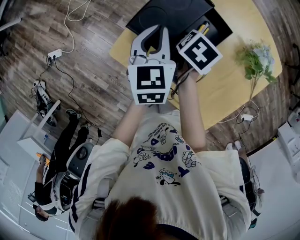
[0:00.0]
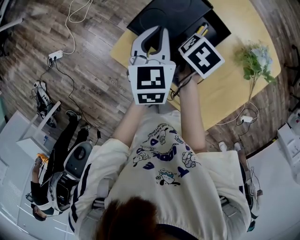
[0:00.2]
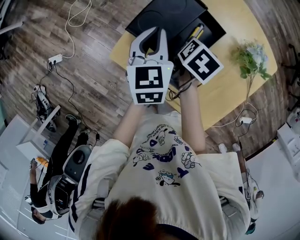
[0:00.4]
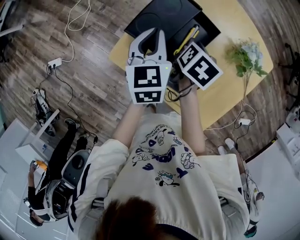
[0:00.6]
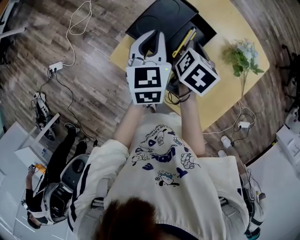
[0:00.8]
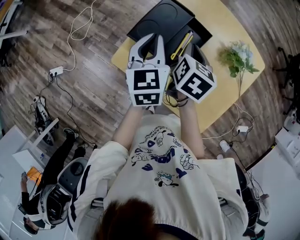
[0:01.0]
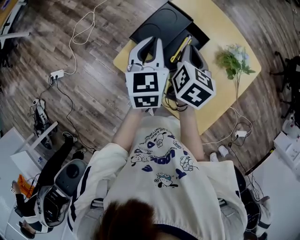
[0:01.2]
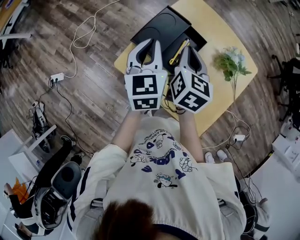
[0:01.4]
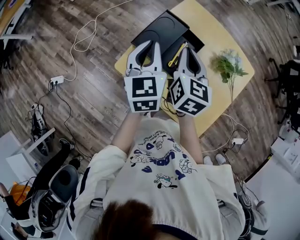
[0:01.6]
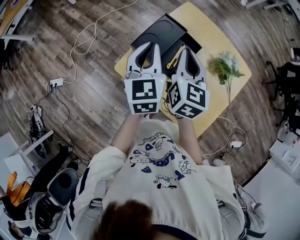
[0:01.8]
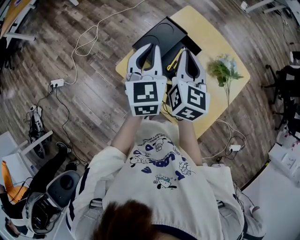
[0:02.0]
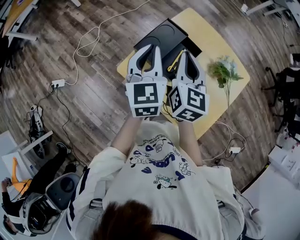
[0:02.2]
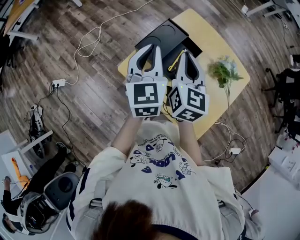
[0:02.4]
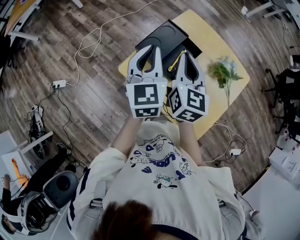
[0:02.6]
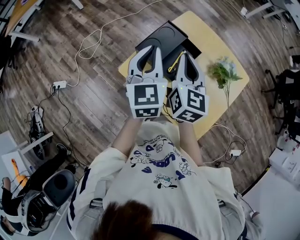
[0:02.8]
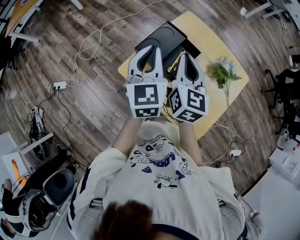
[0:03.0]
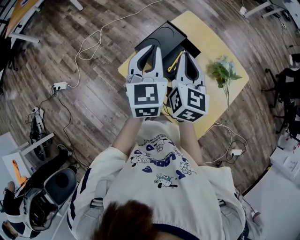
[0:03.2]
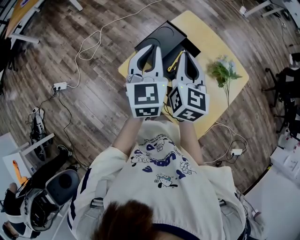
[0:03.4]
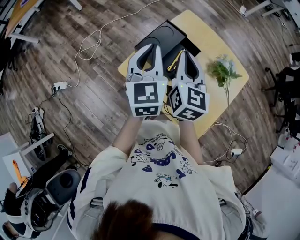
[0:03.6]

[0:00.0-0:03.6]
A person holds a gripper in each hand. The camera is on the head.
0:00.0 to 0:01.8: The left gripper travels upward by some 15 cm, while the right gripper goes approximately 25 cm upward, tilts its fingers about 50 degrees upward, and closes up.
0:01.8 to 0:03.6: The grippers stay close to where they were, moving slightly.

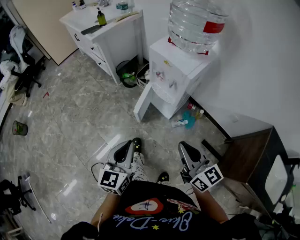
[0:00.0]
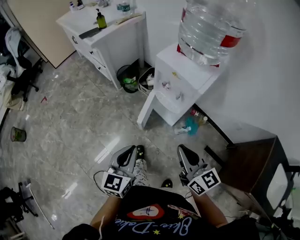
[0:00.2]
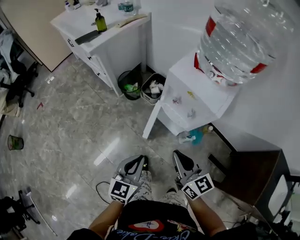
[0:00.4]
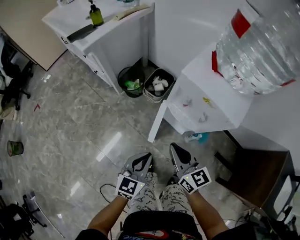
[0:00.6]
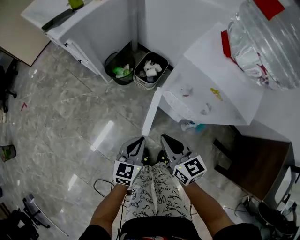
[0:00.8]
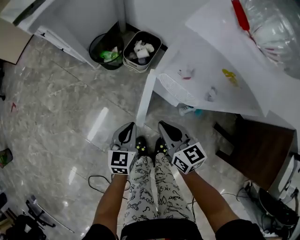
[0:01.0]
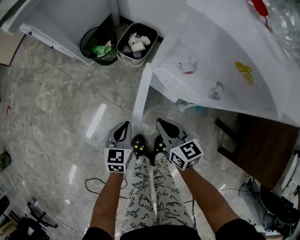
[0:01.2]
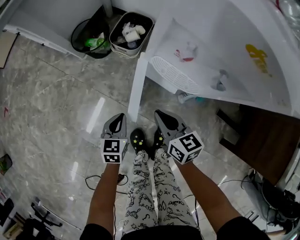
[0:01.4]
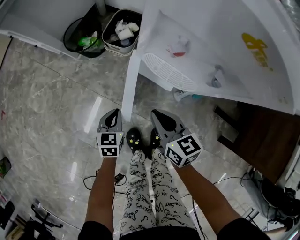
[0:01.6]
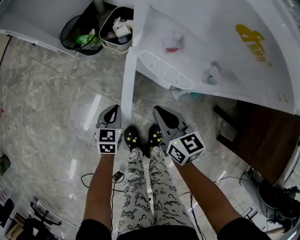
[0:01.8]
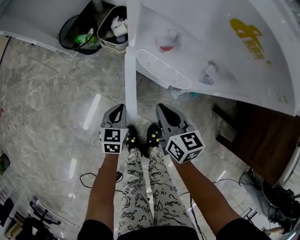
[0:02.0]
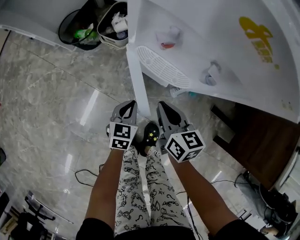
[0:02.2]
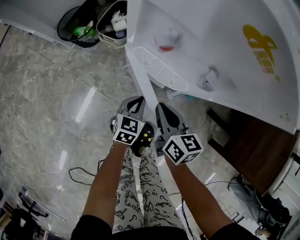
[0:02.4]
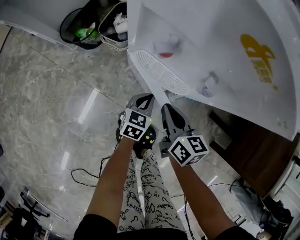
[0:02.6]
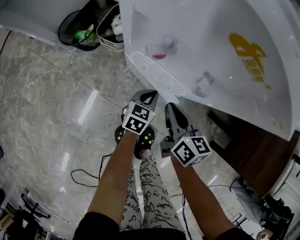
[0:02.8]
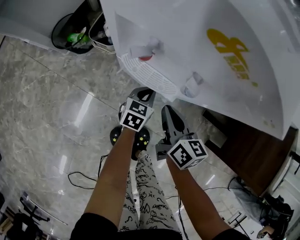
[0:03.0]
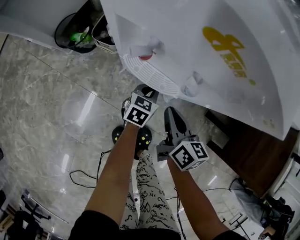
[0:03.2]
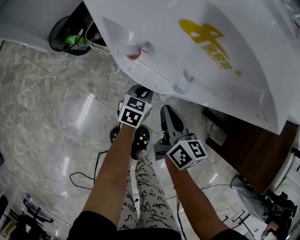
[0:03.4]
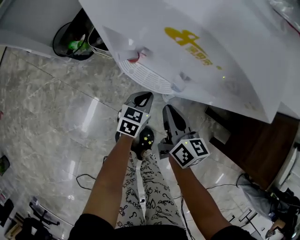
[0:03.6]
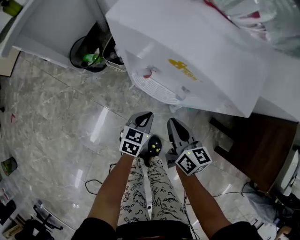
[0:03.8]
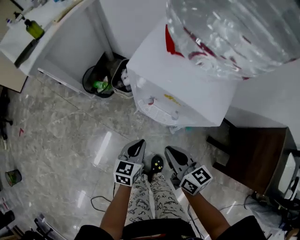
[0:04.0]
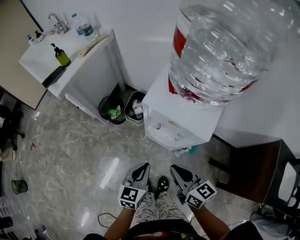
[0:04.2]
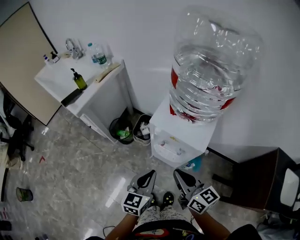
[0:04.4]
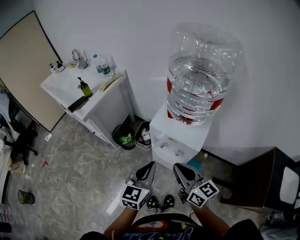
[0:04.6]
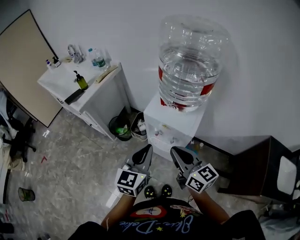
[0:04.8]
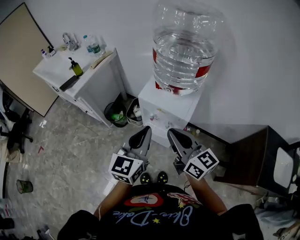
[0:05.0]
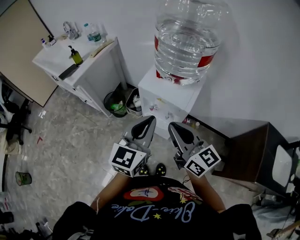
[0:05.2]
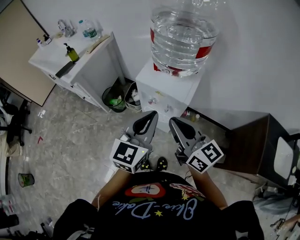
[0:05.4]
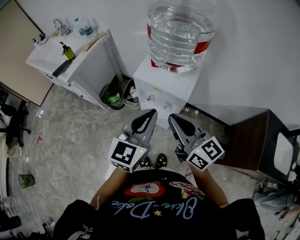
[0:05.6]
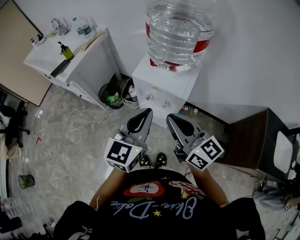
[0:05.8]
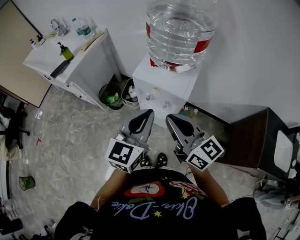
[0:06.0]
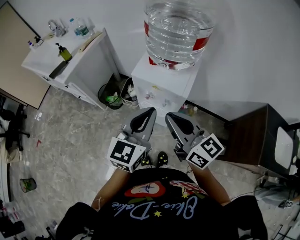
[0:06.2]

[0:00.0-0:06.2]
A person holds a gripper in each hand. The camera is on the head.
0:00.0 to 0:01.6: Both grippers move downward and forward, some 50 cm. The right gripper changes its angle by approximately 30 degrees. The left gripper rotates about 30 degrees.
0:01.6 to 0:03.2: The left gripper goes about 25 cm to the right and forward, and turns by approximately 20 degrees, while the right gripper moves to the right, approximately 15 cm, and rotates about 30 degrees.
0:03.2 to 0:04.6: The two grippers go approximately 50 cm upward. The right gripper rotates about 40 degrees. Meanwhile the left gripper rotates approximately 30 degrees.
0:04.6 to 0:06.2: The left gripper travels upward and to the right by approximately 10 cm. Meanwhile the right gripper heads upward, covering approximately 5 cm.

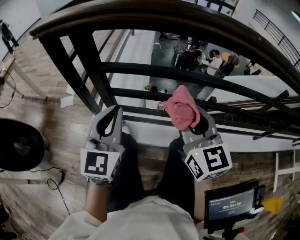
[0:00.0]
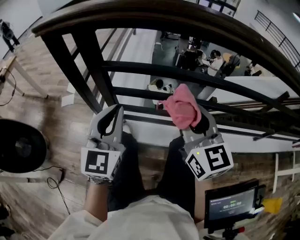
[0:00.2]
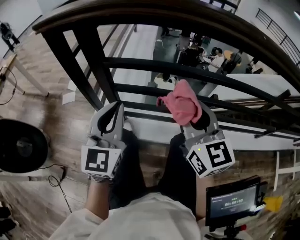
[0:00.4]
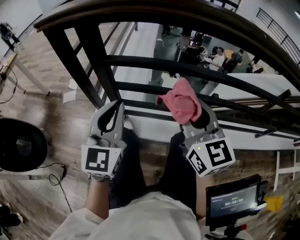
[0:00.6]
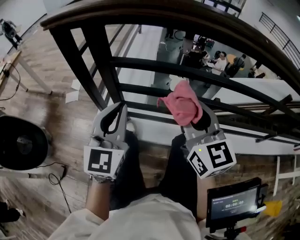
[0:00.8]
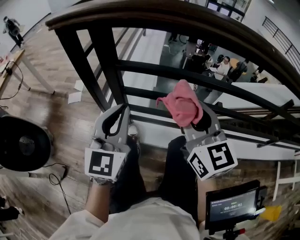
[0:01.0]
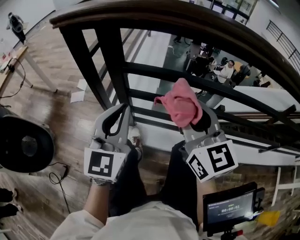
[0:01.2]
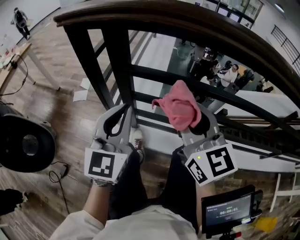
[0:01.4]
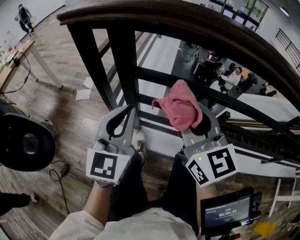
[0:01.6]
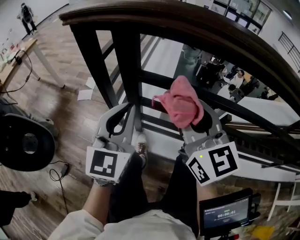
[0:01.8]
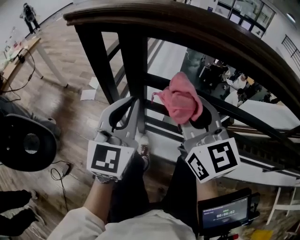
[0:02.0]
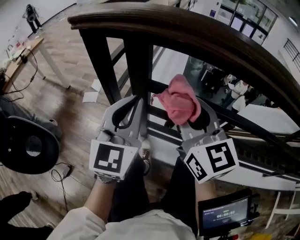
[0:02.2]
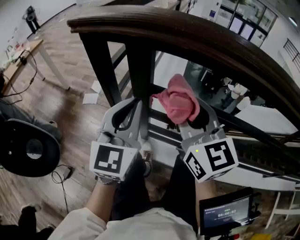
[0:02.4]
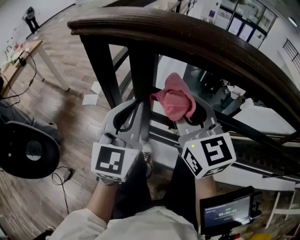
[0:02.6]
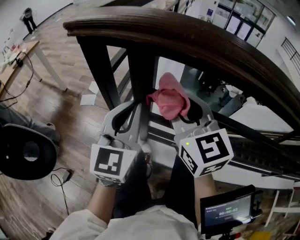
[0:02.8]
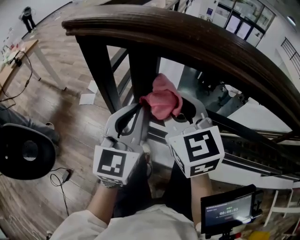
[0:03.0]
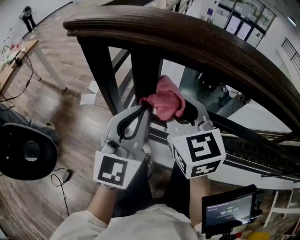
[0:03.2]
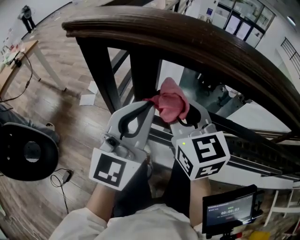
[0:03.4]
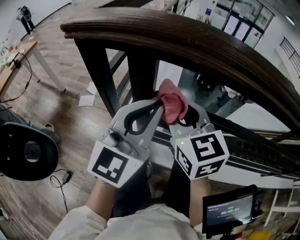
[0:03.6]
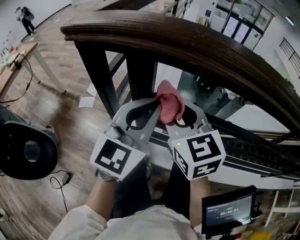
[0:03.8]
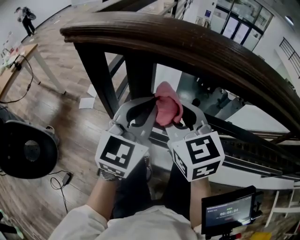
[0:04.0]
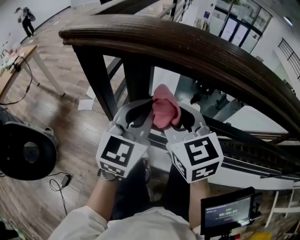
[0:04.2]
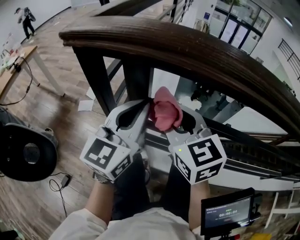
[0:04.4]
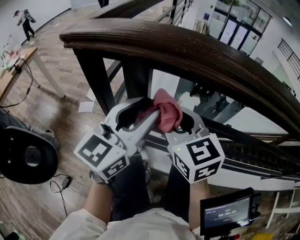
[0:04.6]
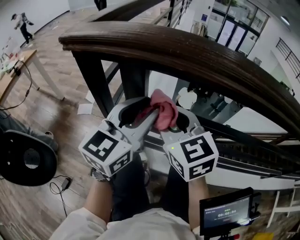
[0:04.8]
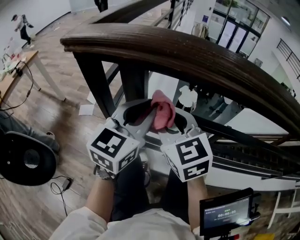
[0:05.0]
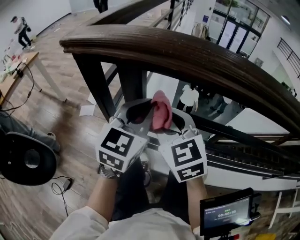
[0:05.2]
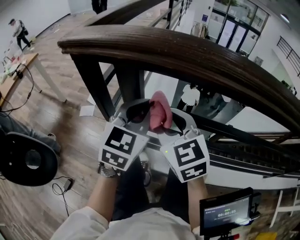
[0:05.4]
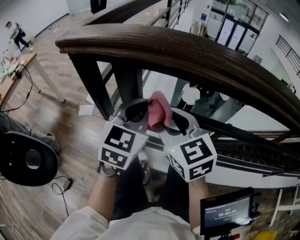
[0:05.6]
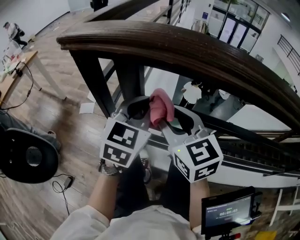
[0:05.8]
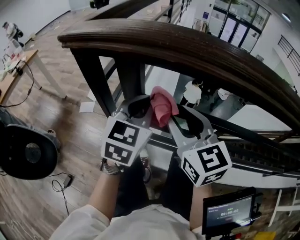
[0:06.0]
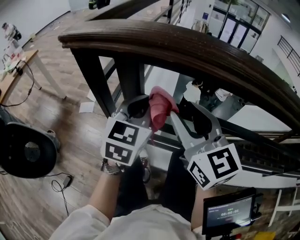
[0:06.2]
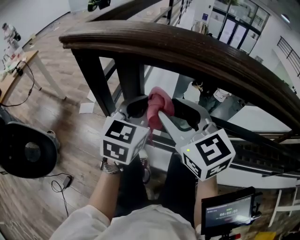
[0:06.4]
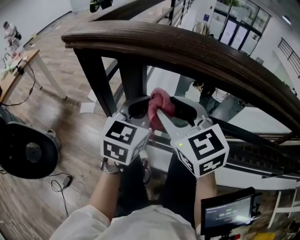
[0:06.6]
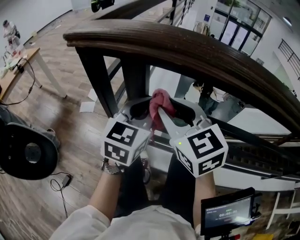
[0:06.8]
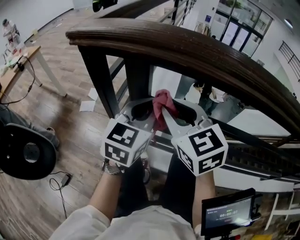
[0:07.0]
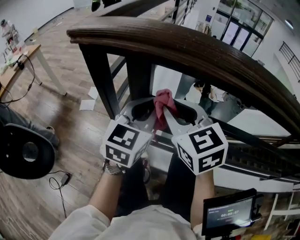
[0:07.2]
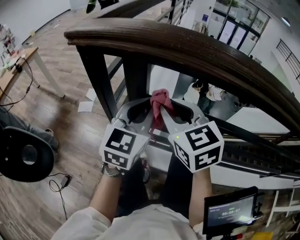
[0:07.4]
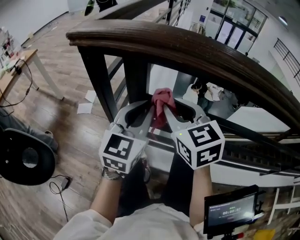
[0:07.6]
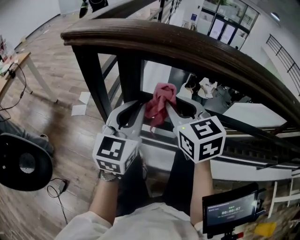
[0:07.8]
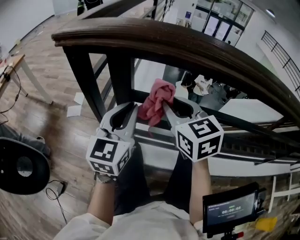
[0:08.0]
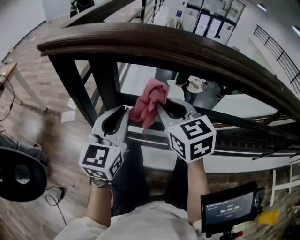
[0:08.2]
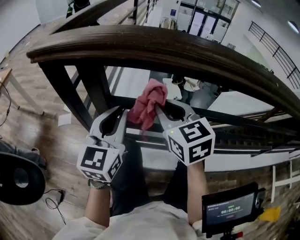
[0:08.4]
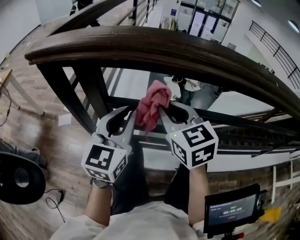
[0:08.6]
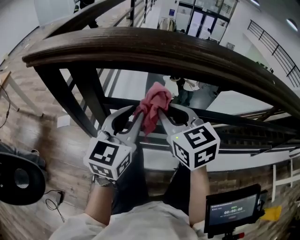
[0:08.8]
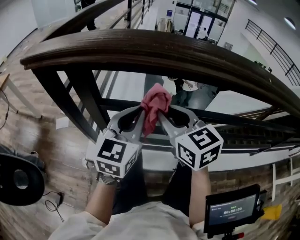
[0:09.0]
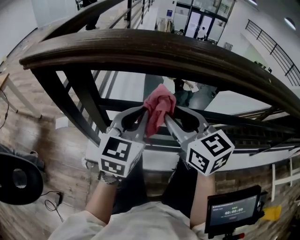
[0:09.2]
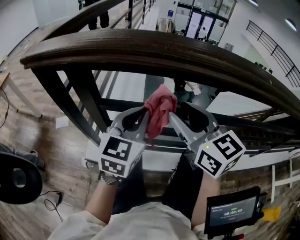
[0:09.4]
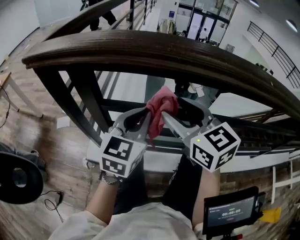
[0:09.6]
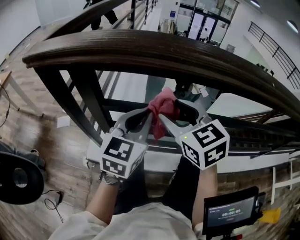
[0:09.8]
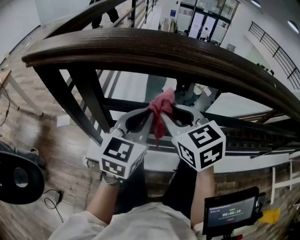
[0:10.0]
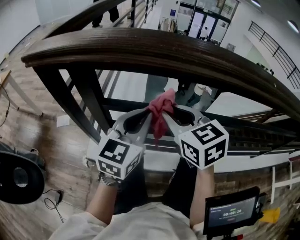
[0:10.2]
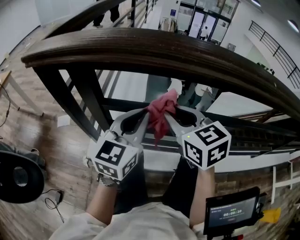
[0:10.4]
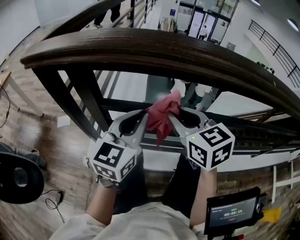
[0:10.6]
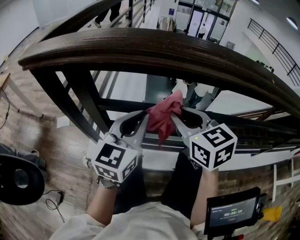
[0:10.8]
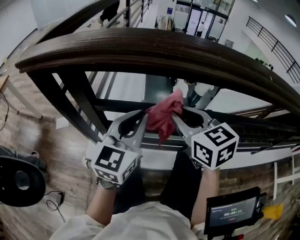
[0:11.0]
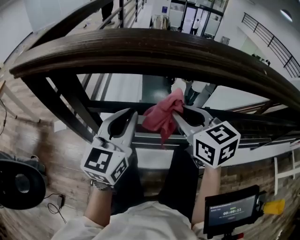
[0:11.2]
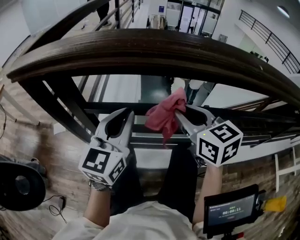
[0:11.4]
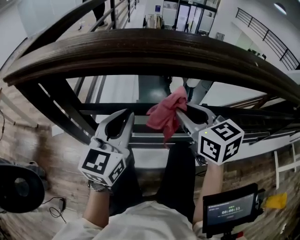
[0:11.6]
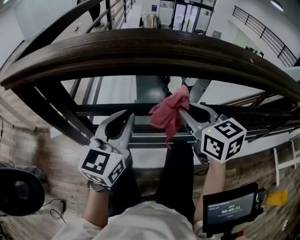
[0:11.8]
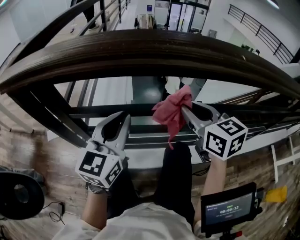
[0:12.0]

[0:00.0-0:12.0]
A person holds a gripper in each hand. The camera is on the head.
0:00.0 to 0:01.6: The left gripper travels to the left by roughly 5 cm. The right gripper travels to the left and forward by some 10 cm.
0:01.6 to 0:03.0: The left gripper goes approximately 10 cm forward, while the right gripper heads forward and to the left, covering roughly 15 cm.
0:04.4 to 0:06.0: The left gripper changes place by roughly 5 cm, rotates approximately 20 degrees, and opens and closes again.
0:06.0 to 0:07.6: There are only small adjustments of the grippers.
0:07.6 to 0:09.0: Both grippers move to the right, approximately 10 cm.
0:09.0 to 0:10.4: The right gripper opens, then closes again.
0:10.4 to 0:12.0: The right gripper shifts approximately 15 cm to the right.

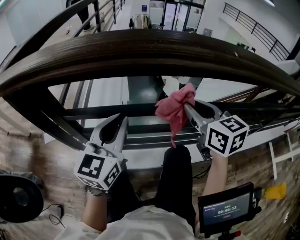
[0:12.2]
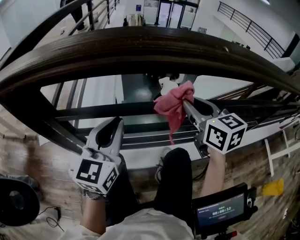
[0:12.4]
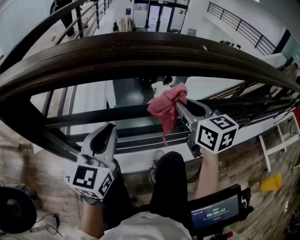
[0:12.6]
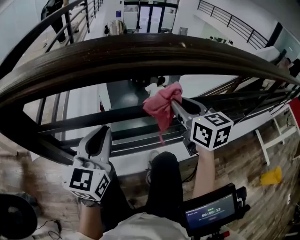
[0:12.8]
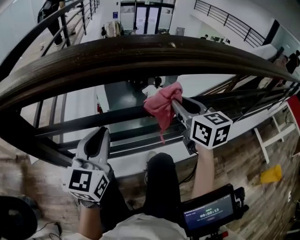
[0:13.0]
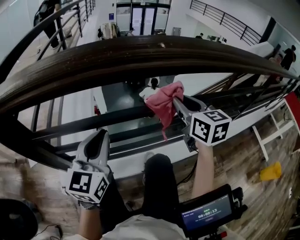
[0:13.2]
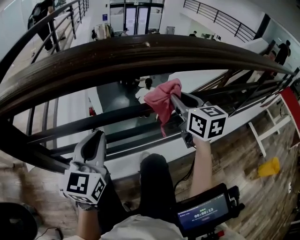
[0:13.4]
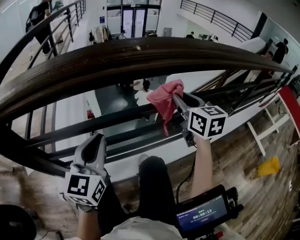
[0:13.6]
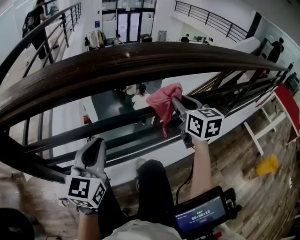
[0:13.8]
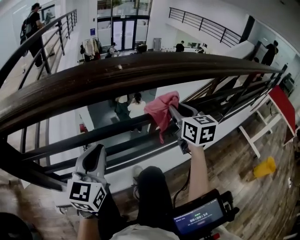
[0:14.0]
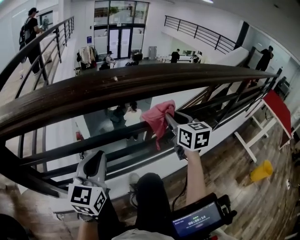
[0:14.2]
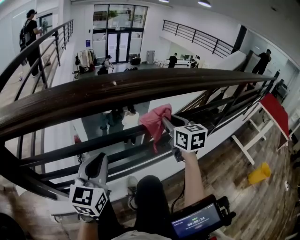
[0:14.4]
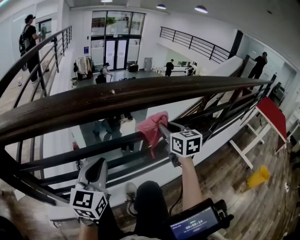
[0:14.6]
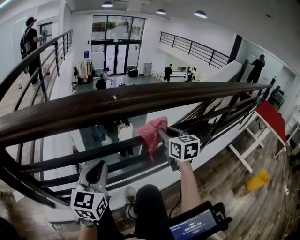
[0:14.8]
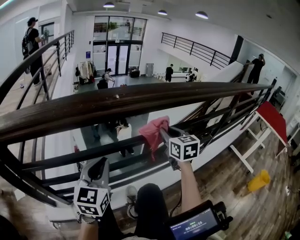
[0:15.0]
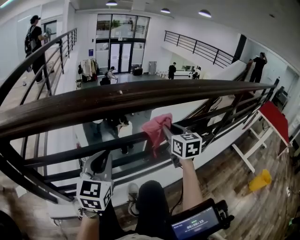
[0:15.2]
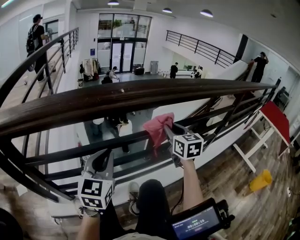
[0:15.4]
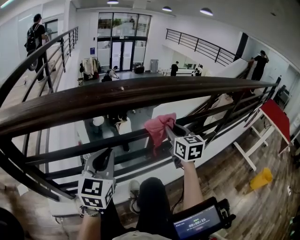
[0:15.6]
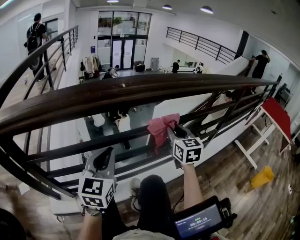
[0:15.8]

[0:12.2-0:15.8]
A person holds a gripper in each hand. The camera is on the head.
0:12.2 to 0:14.0: The left gripper moves to the right, approximately 15 cm. Meanwhile the right gripper goes some 20 cm to the right, and changes its angle by roughly 30 degrees.
0:14.0 to 0:15.8: There are only small adjustments of the grippers.
